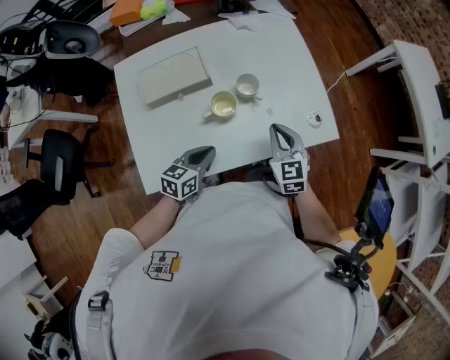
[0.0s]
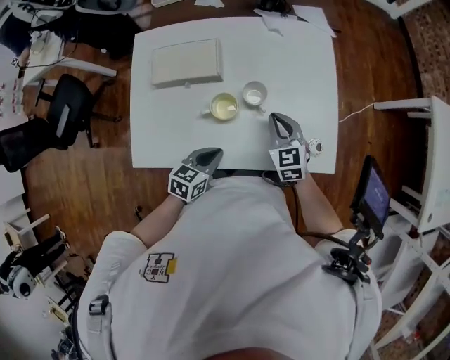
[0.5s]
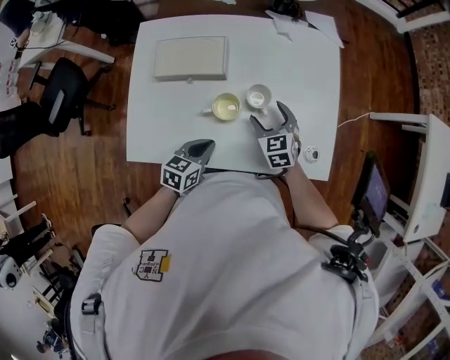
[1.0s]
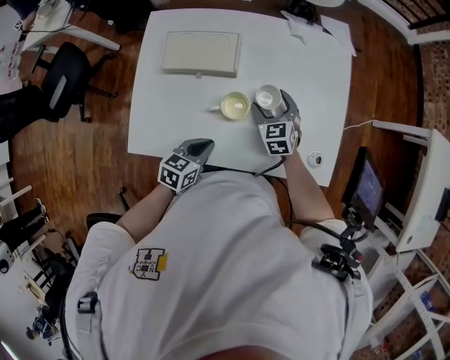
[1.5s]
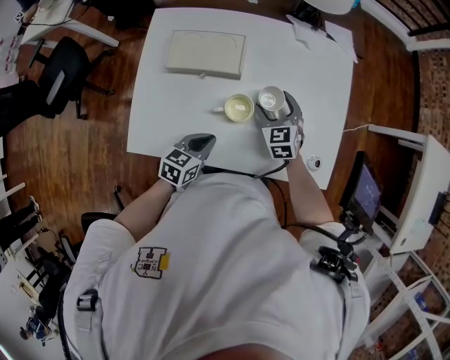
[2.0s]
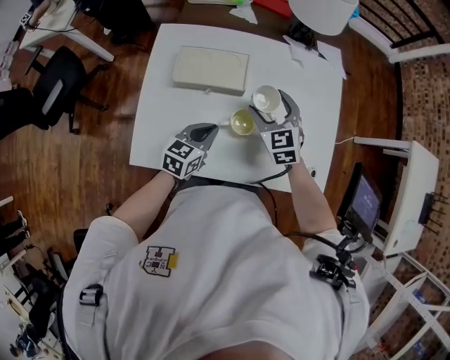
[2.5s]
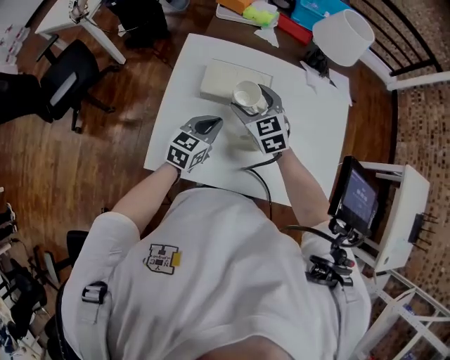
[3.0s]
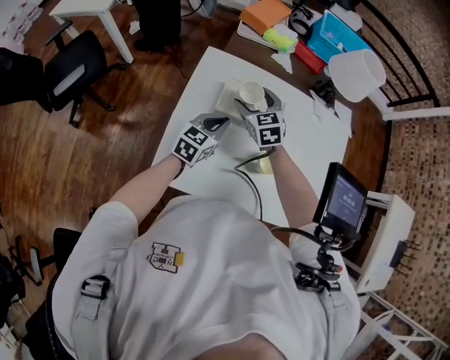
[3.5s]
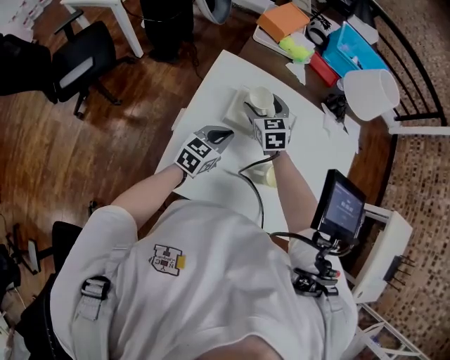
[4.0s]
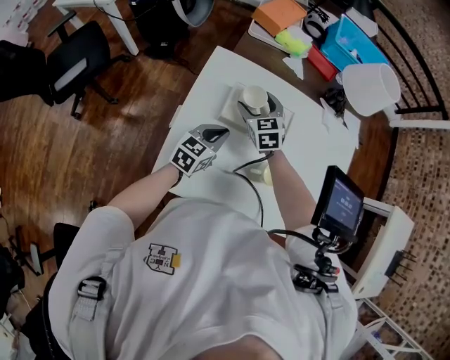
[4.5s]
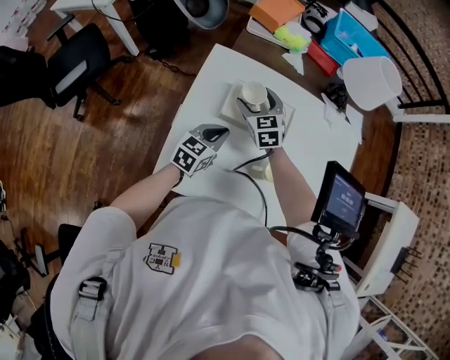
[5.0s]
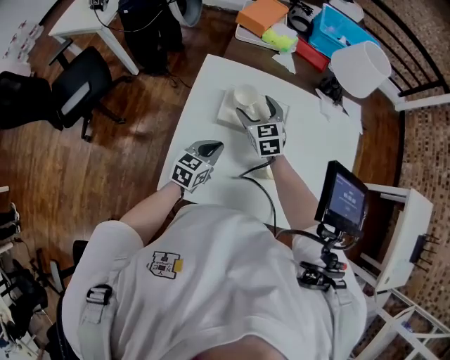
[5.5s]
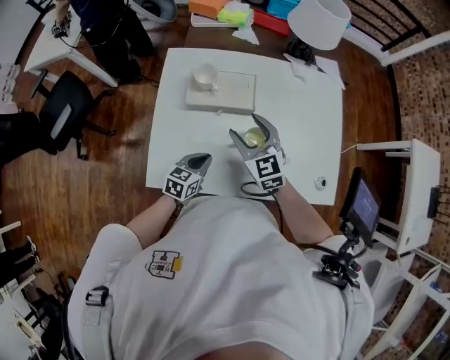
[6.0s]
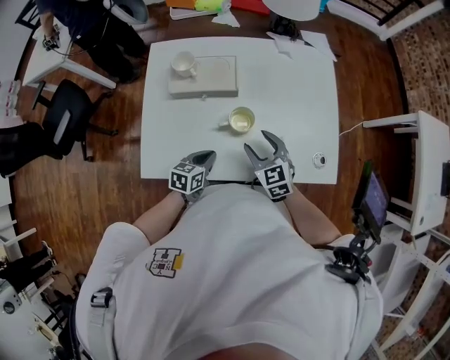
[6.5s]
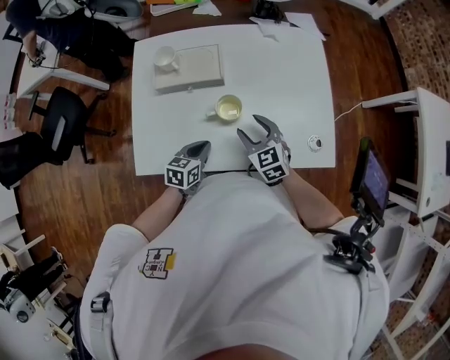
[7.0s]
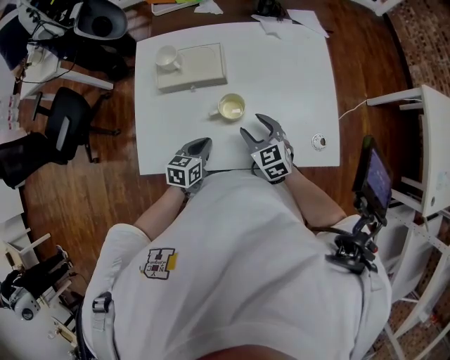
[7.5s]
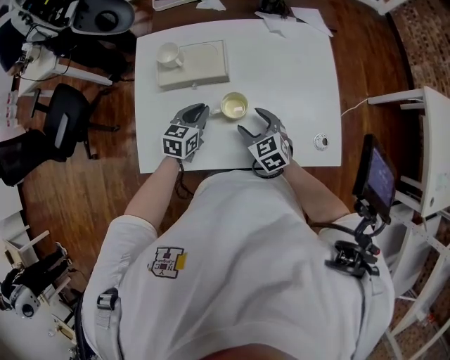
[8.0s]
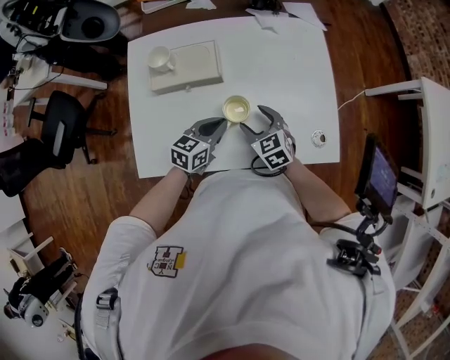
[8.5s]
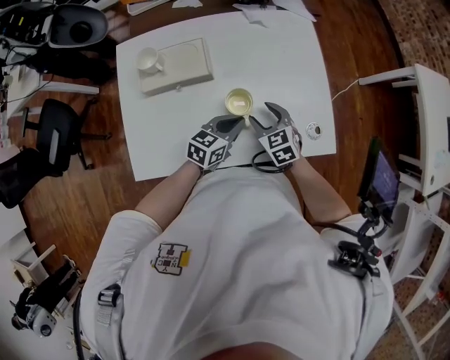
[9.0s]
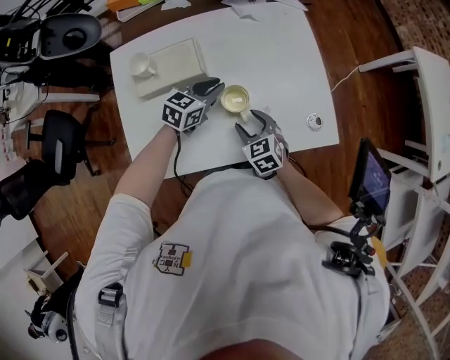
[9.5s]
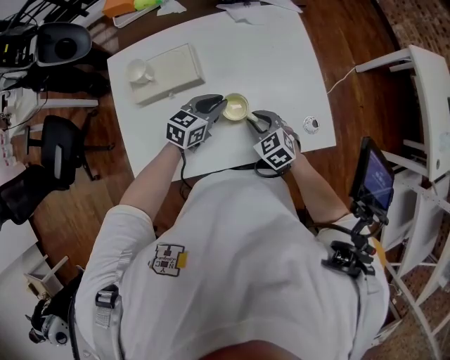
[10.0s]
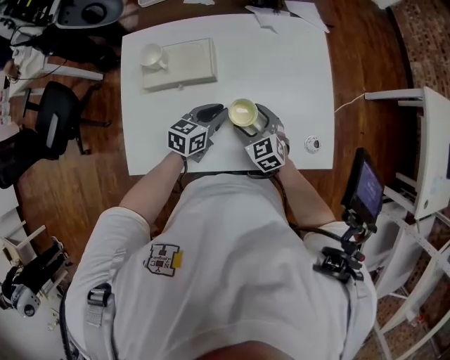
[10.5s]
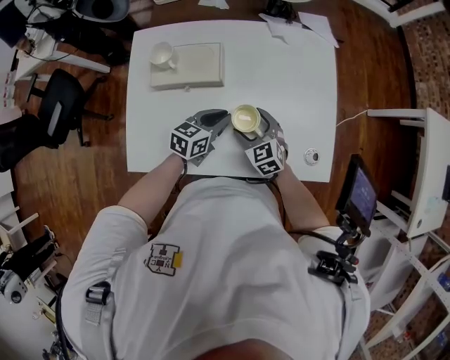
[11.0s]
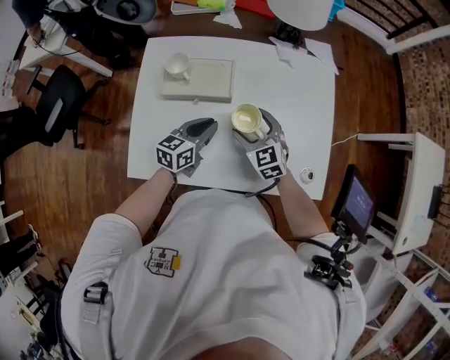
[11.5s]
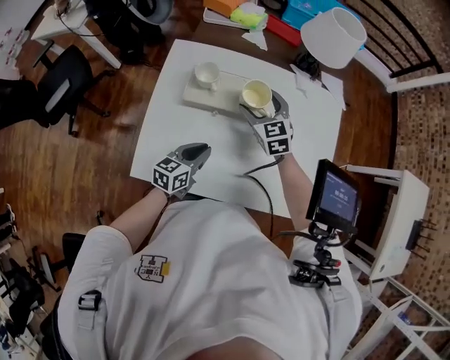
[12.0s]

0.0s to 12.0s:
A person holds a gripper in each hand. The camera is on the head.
0.0s to 2.0s: The right gripper moves forward, to the left and downward, approximately 20 cm, changes its angle by approximately 20 degrees, and opens up.
2.0s to 4.0s: Both grippers move to the left and forward, roughly 25 cm.
4.0s to 6.0s: The left gripper moves backward, to the right and downward, roughly 15 cm, while the right gripper travels backward and to the right by some 20 cm.
6.0s to 8.0s: The left gripper heads forward and to the right, covering about 10 cm, while the right gripper goes some 20 cm downward, to the right and backward.
8.0s to 10.0s: The right gripper is displaced to the right by approximately 5 cm, and closes up. The left gripper shifts about 15 cm to the right, and turns by approximately 30 degrees.
10.0s to 12.0s: The right gripper shifts some 30 cm forward, to the left and upward, and opens up. The left gripper goes some 15 cm to the left, and rotates roughly 30 degrees.

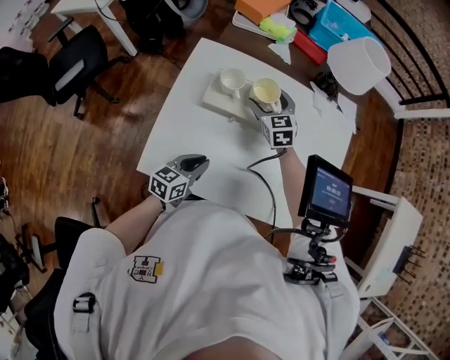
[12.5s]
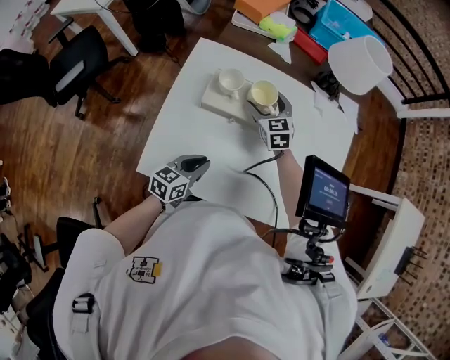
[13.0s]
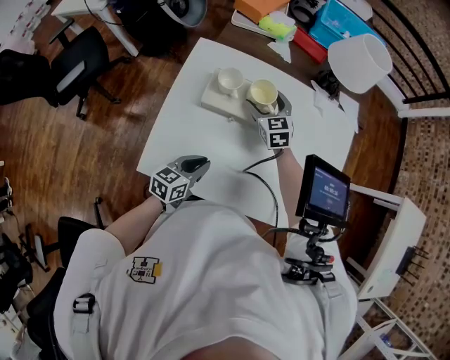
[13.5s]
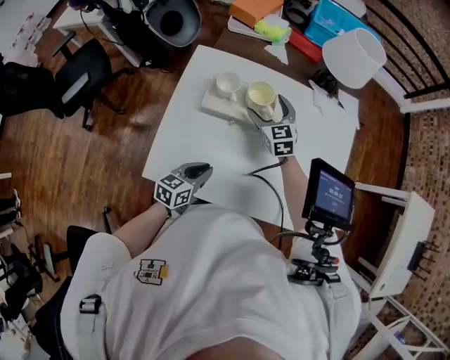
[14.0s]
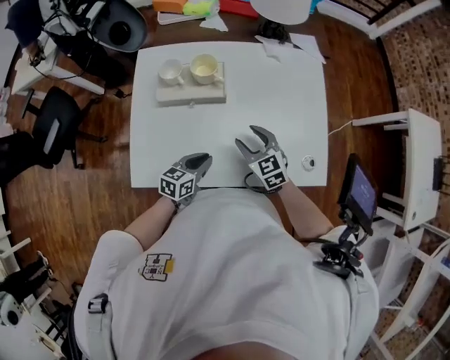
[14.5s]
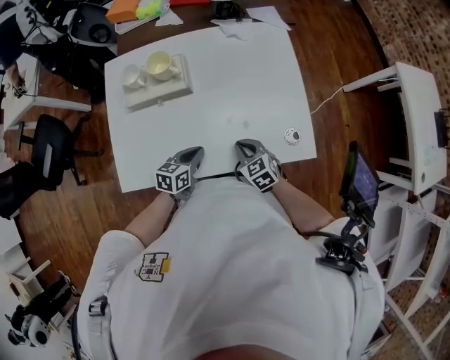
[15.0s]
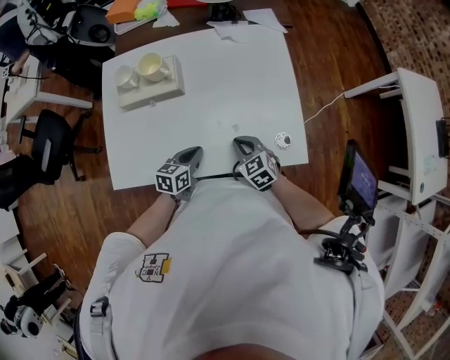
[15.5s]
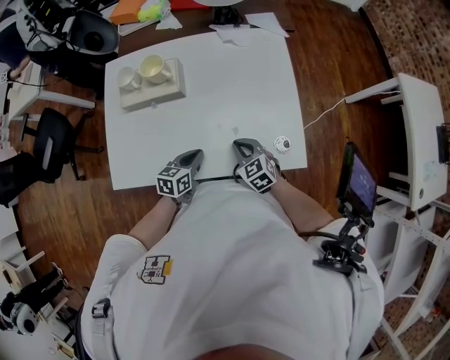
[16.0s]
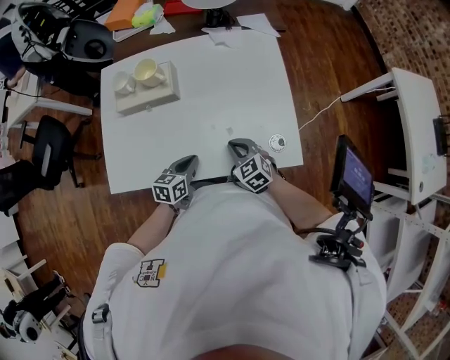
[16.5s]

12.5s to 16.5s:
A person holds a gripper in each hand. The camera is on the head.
12.5s to 14.5s: The right gripper goes roughly 25 cm backward and to the right, and closes. Meanwhile the left gripper shifts about 5 cm to the right.
14.5s to 16.5s: The left gripper heads to the right, covering about 10 cm; the right gripper shifts about 15 cm to the right, downward and backward, and closes its fingers.

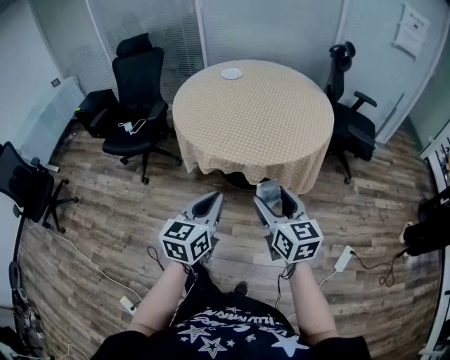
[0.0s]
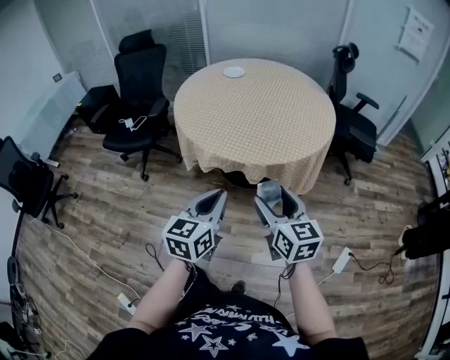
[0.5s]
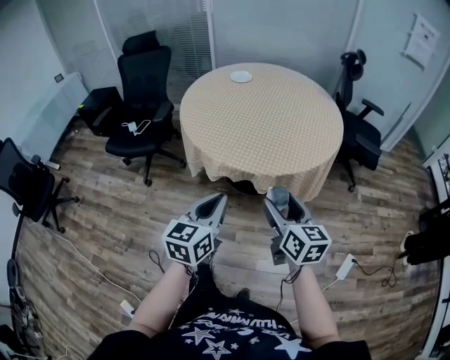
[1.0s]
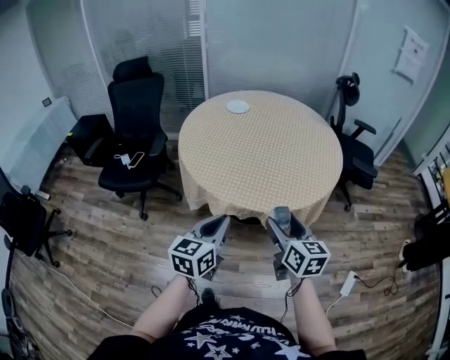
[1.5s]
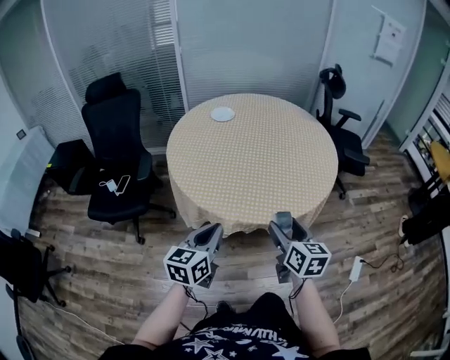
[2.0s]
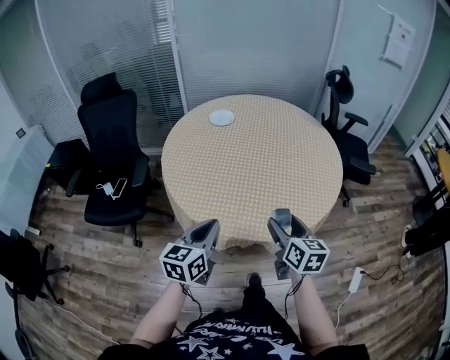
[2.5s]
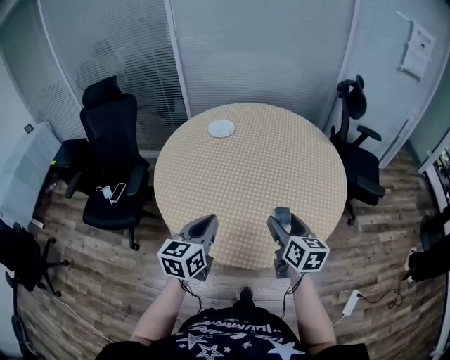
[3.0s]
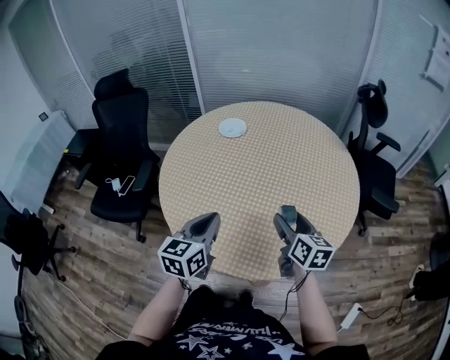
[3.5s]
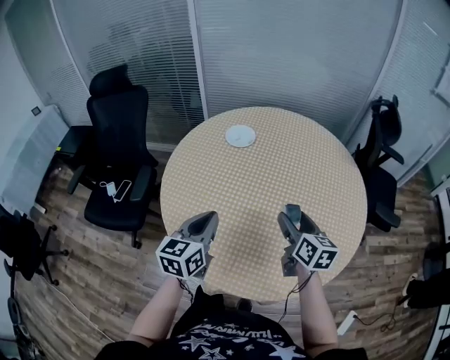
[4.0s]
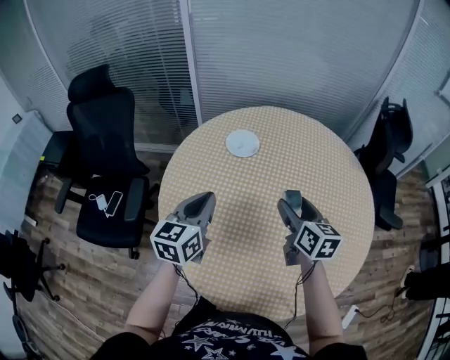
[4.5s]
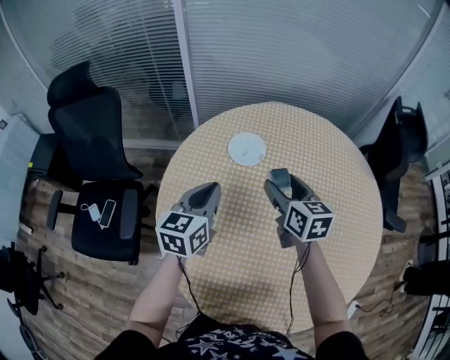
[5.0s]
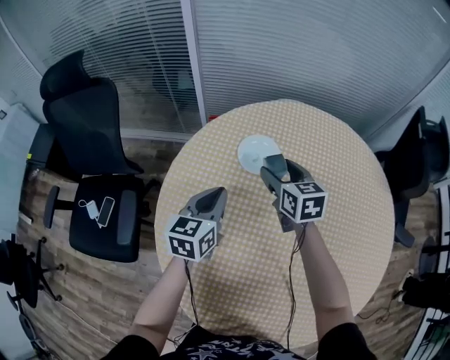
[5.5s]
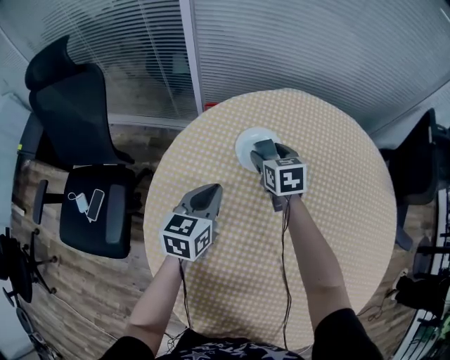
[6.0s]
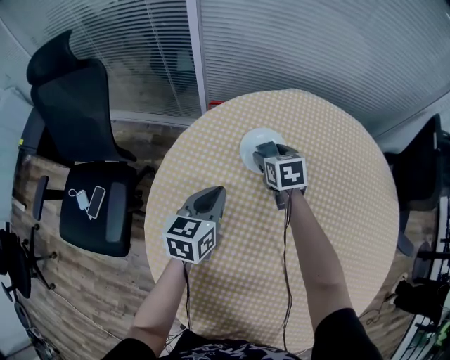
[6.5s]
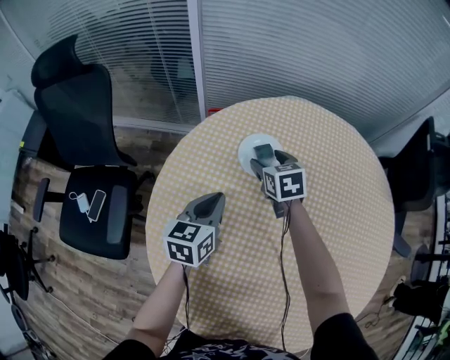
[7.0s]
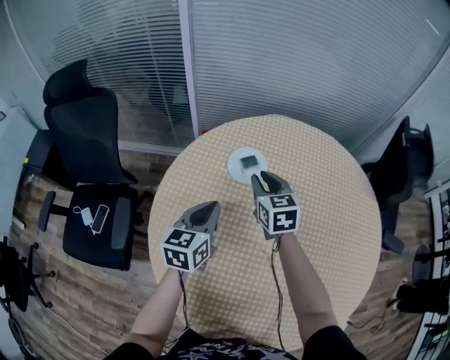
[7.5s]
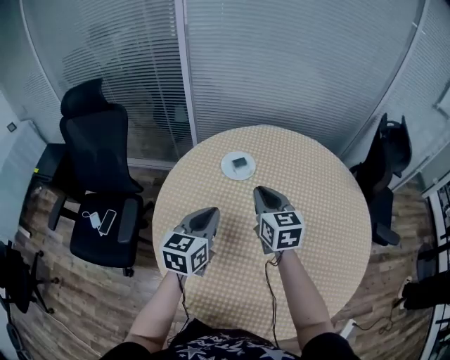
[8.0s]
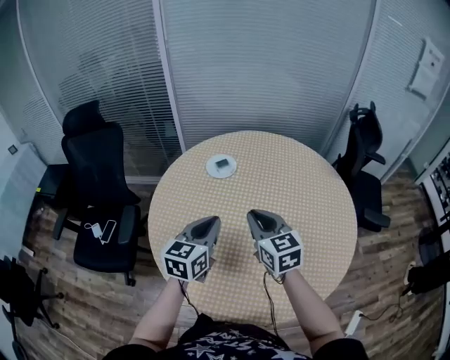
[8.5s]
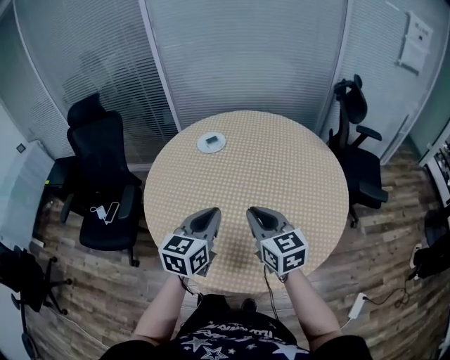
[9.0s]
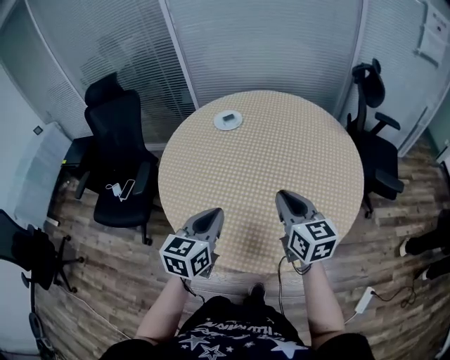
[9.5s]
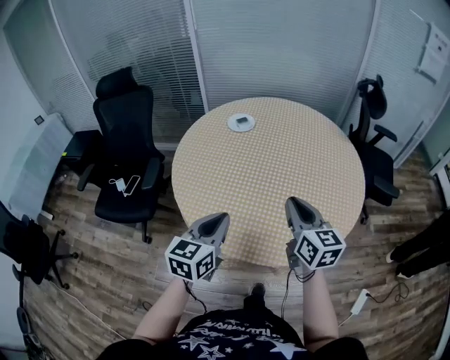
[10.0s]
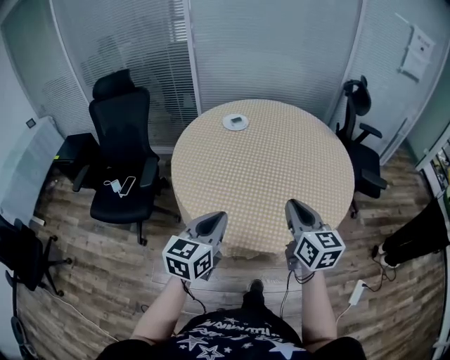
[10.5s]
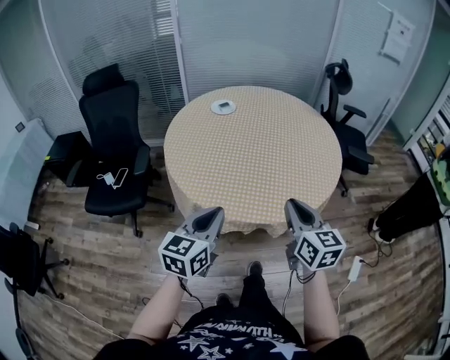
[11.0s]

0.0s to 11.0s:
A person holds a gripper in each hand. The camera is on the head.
0.0s to 2.0s: Both grippers move forward and to the left, about 20 cm. The right gripper turns by roughly 20 degrees.
2.0s to 3.5s: Both grippers travel together forward, roughly 25 cm.
3.5s to 5.5s: The pair of grippers is taken forward and to the left, roughly 50 cm. The right gripper swivels approximately 20 degrees.
5.5s to 7.5s: The right gripper travels downward and back again, approximately 10 cm each way, and closes its fingers; the left gripper travels downward and back again, about 5 cm each way.
7.5s to 9.0s: The right gripper moves backward, roughly 40 cm; the left gripper shifts approximately 35 cm backward and to the right.
9.0s to 11.0s: Both grippers travel together backward, roughly 25 cm.
